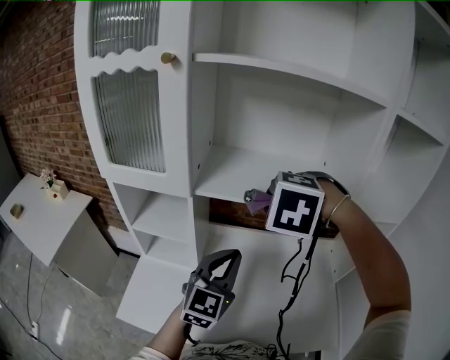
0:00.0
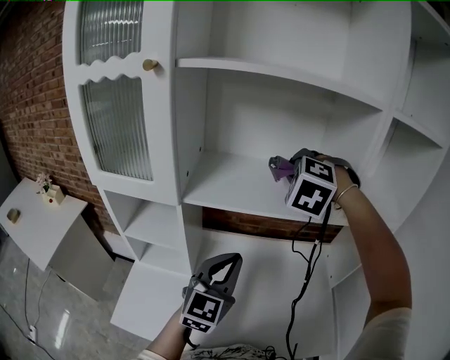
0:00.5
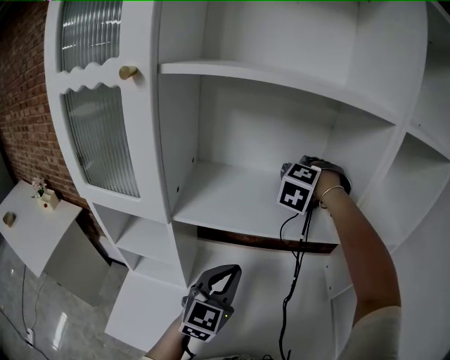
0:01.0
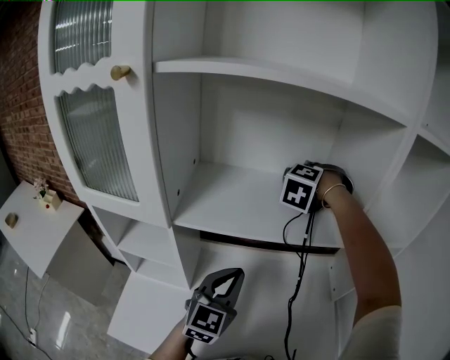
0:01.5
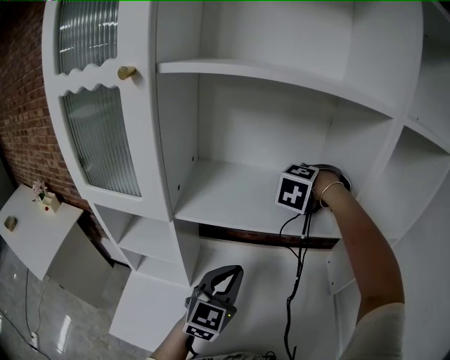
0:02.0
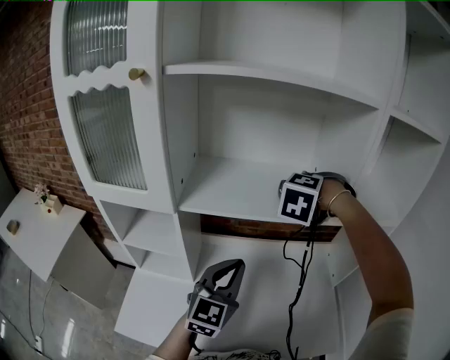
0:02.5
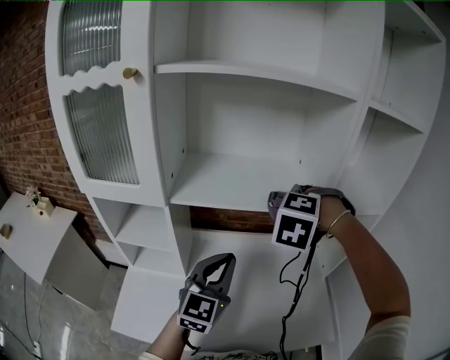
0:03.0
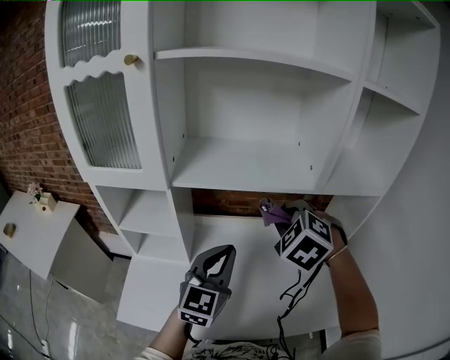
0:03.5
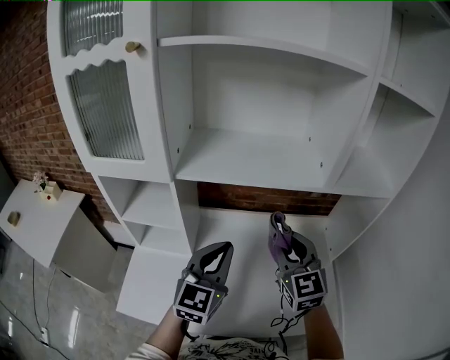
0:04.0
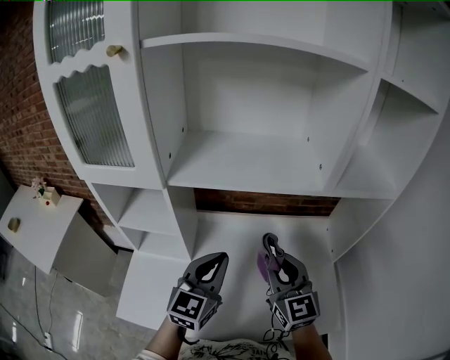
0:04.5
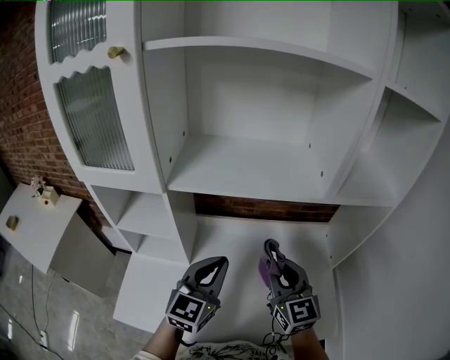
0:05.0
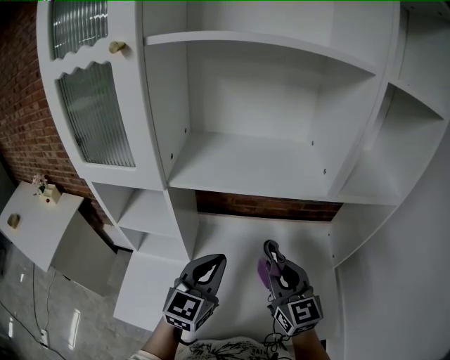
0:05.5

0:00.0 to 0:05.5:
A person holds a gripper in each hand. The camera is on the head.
0:00.0 to 0:02.0: The left gripper heads forward, covering approximately 5 cm. Meanwhile the right gripper heads forward, covering roughly 20 cm, and swivels some 30 degrees.
0:02.0 to 0:03.5: The right gripper travels backward by some 20 cm, and swivels approximately 30 degrees. The left gripper shifts about 10 cm backward.
0:03.5 to 0:05.5: The left gripper ends up about 5 cm from where it was. The right gripper moves downward, about 10 cm, and points its fingers about 40 degrees further upward.

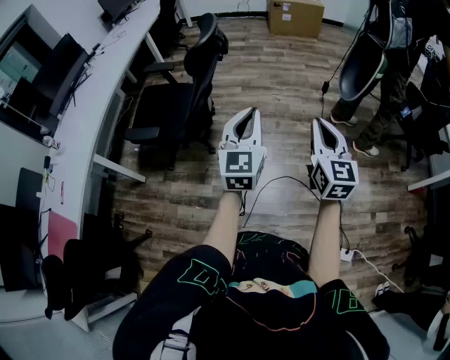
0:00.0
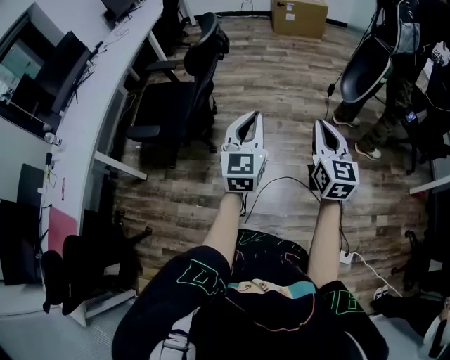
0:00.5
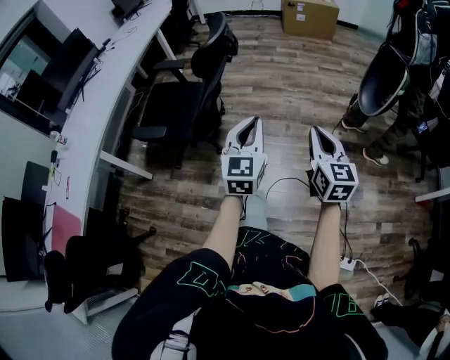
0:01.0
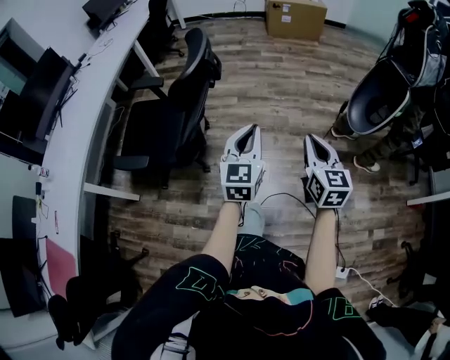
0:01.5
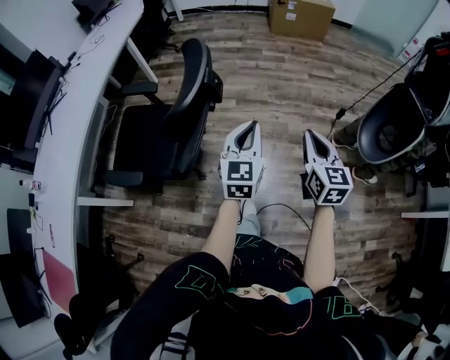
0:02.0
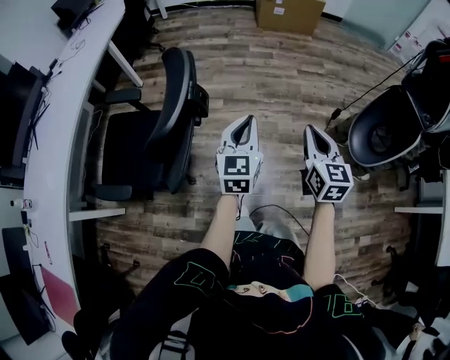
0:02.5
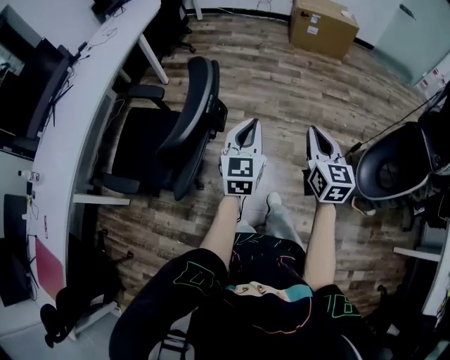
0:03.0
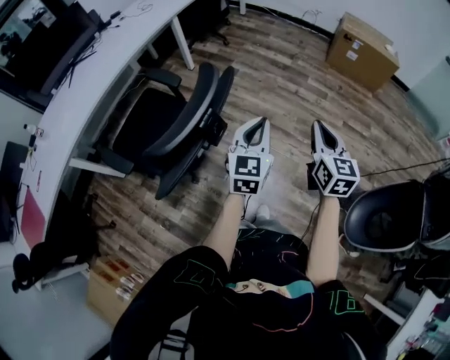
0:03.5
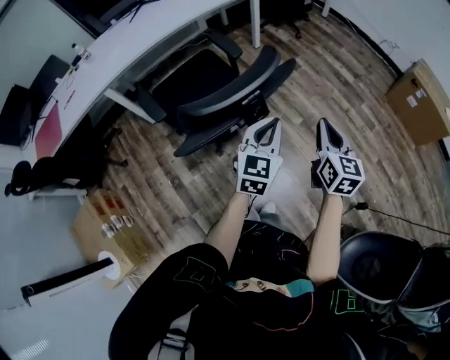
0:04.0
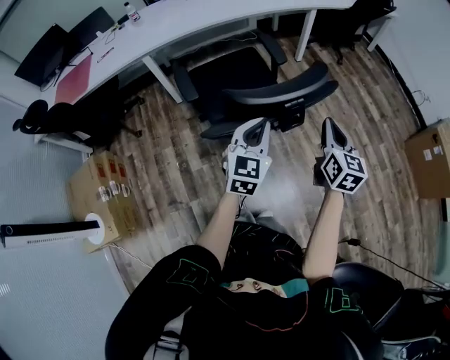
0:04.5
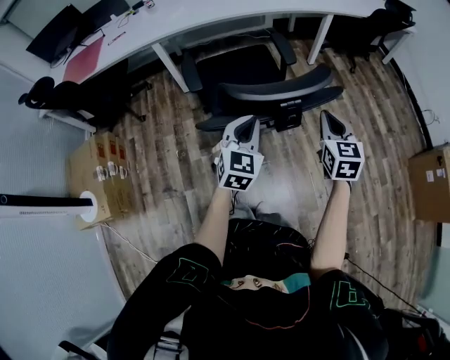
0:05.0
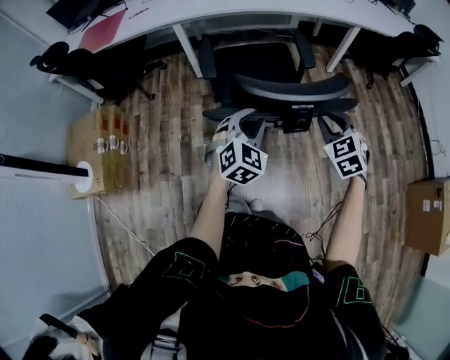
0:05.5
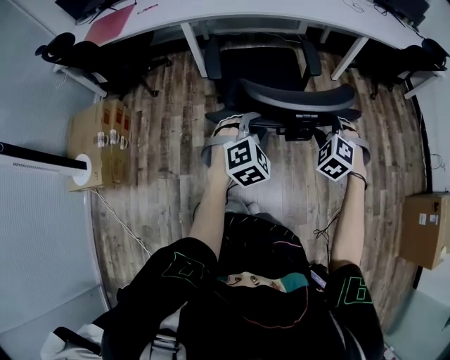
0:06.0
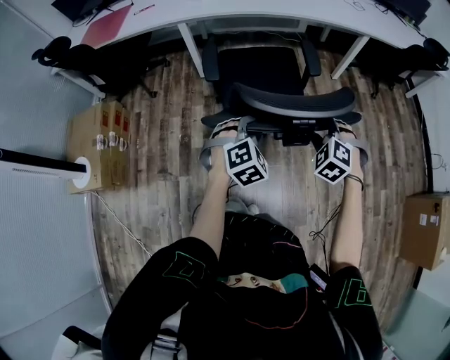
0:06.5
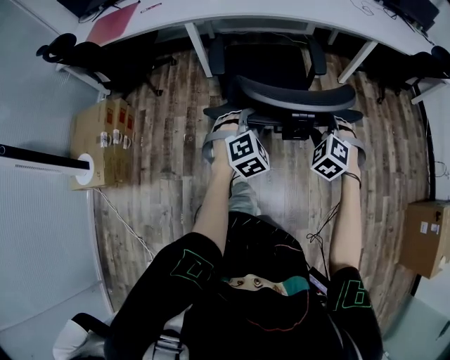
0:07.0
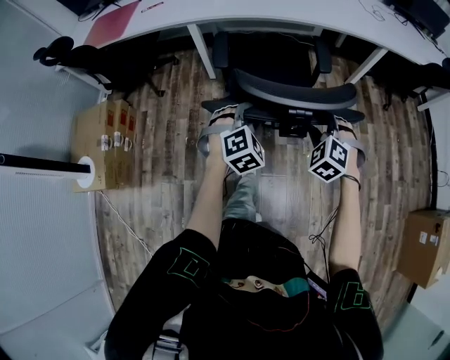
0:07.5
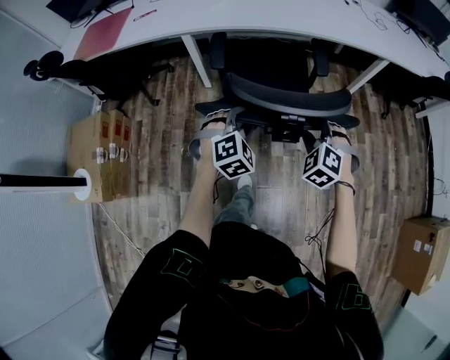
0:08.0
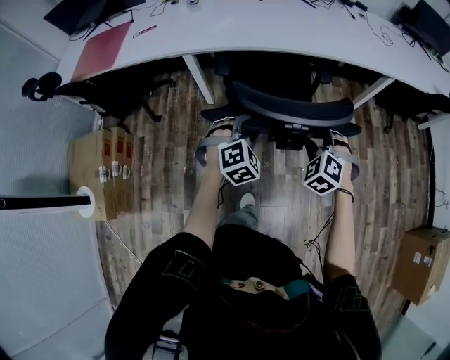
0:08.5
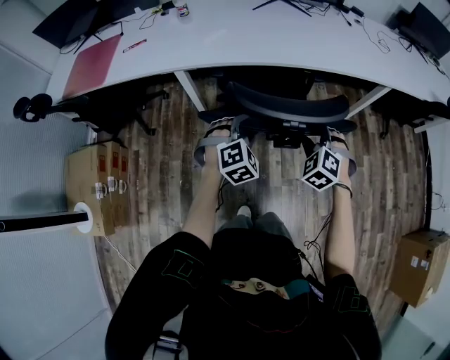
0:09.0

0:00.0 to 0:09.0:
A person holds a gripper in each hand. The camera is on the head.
0:00.0 to 0:02.0: The grippers both shift forward by about 30 cm.
0:02.0 to 0:04.5: The left gripper moves approximately 15 cm, and rotates about 60 degrees. Meanwhile the right gripper ends up approximately 35 cm from where it was, and rotates about 50 degrees.
0:04.5 to 0:07.0: The right gripper is displaced forward, downward and to the left by approximately 20 cm, rolls counterclockwise, seen from behind, by roughly 80 degrees, and opens up. Meanwhile the left gripper heads downward and forward, covering roughly 15 cm, angles its fingers downward, by approximately 30 degrees, and opens.
0:07.0 to 0:09.0: Both grippers travel together forward, roughly 35 cm.

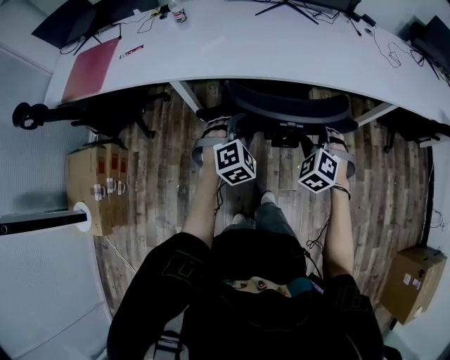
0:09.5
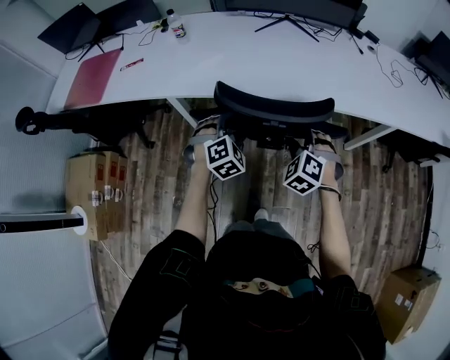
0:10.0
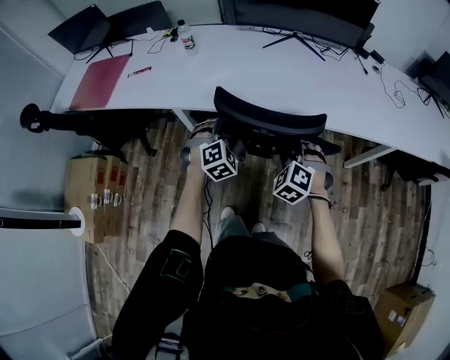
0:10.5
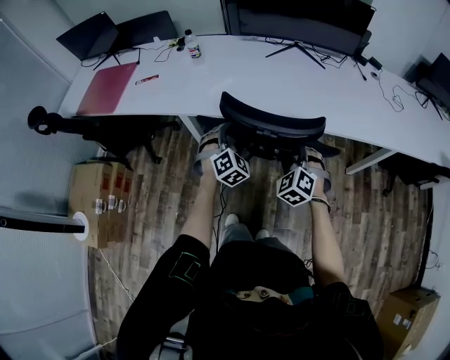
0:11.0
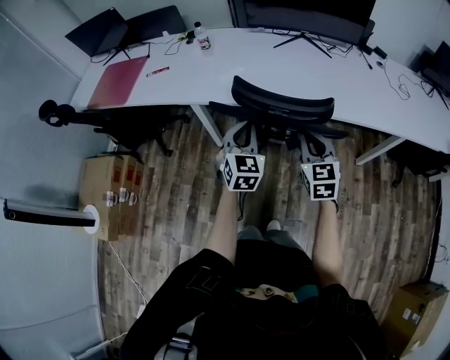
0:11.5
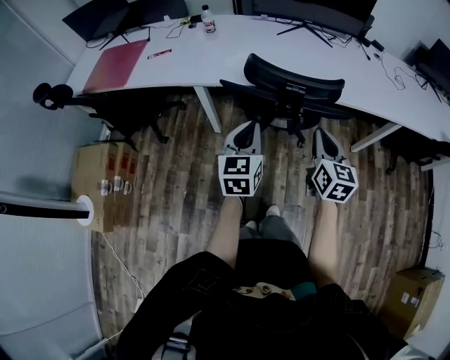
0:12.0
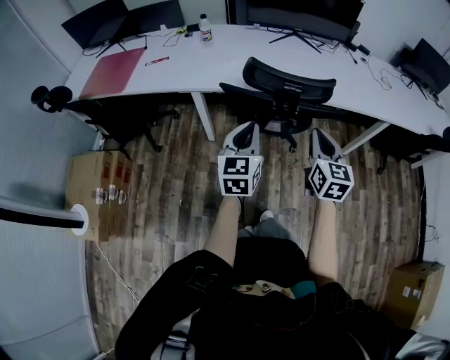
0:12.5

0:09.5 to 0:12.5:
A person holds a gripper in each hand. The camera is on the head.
0:09.5 to 0:11.0: Both grippers move forward, about 10 cm.
0:11.0 to 0:12.5: Both grippers move backward and upward, some 20 cm. The left gripper rolls counterclockwise, seen from behind, by roughly 50 degrees, and closes its fingers. The right gripper twists some 60 degrees clockwise, seen from behind, and closes up.

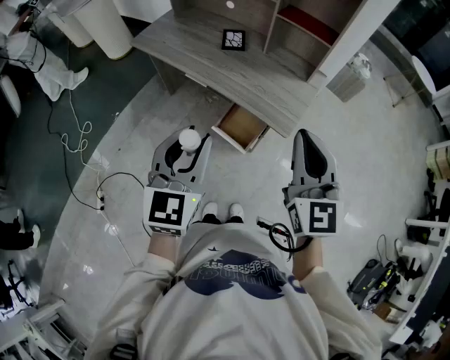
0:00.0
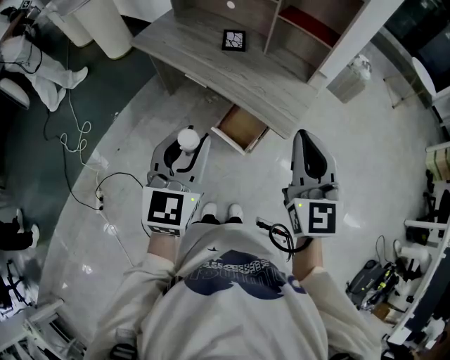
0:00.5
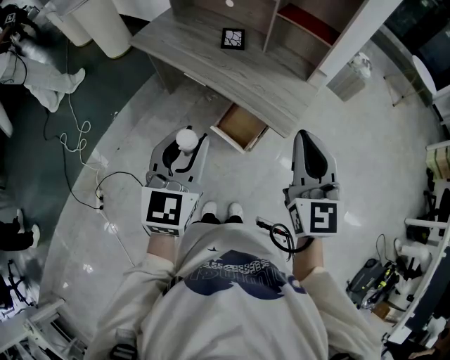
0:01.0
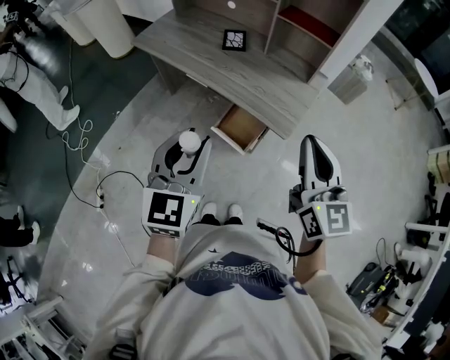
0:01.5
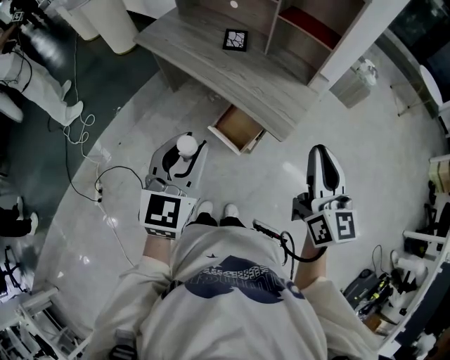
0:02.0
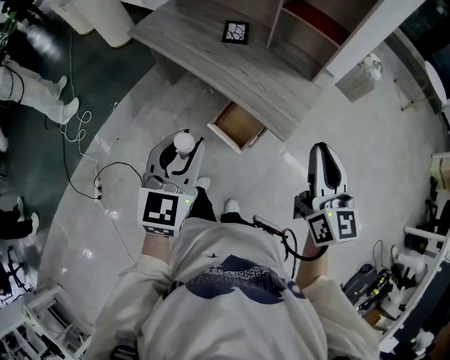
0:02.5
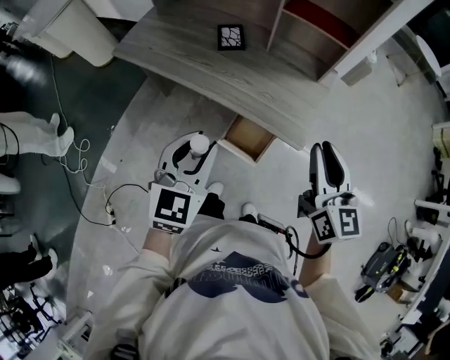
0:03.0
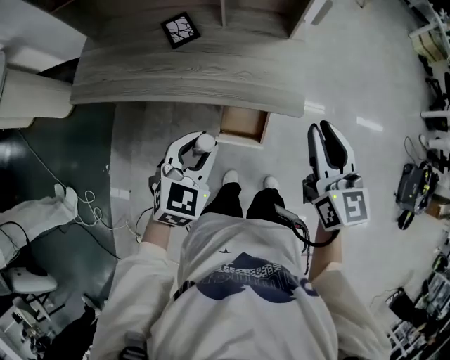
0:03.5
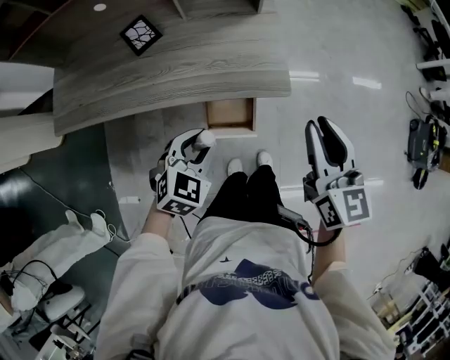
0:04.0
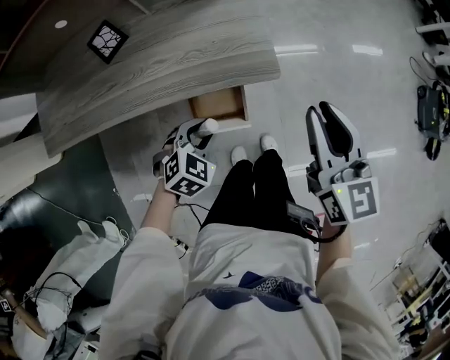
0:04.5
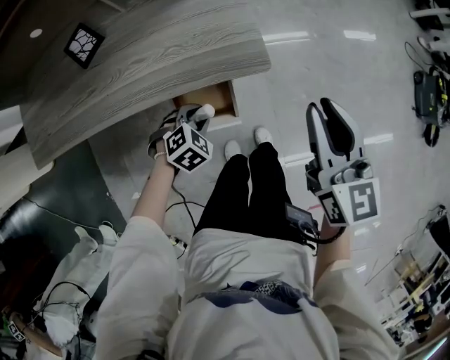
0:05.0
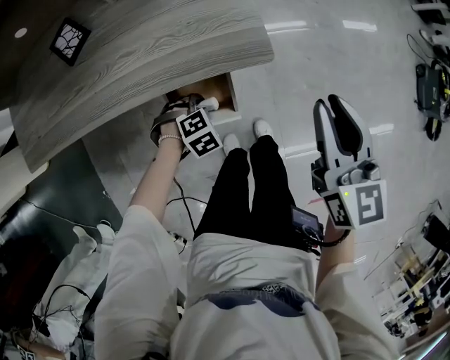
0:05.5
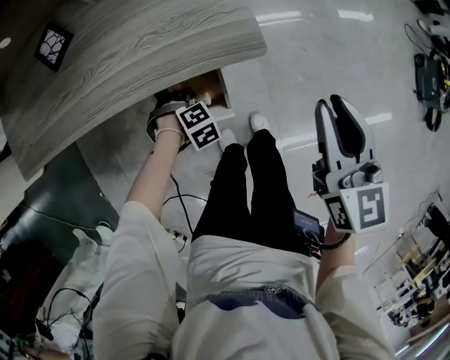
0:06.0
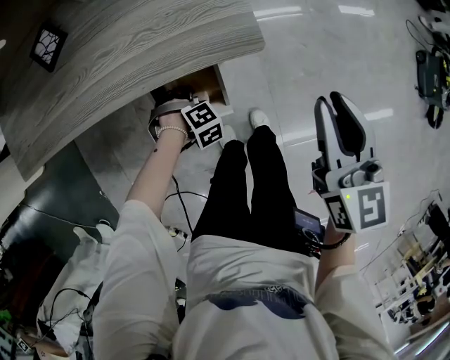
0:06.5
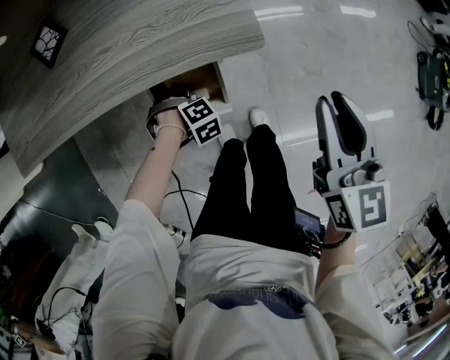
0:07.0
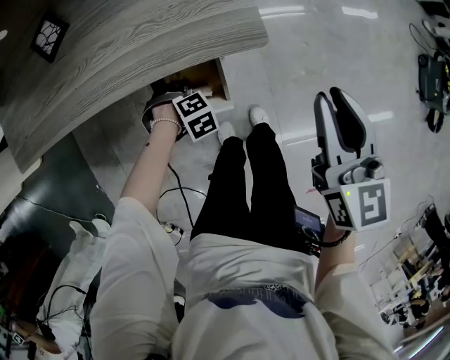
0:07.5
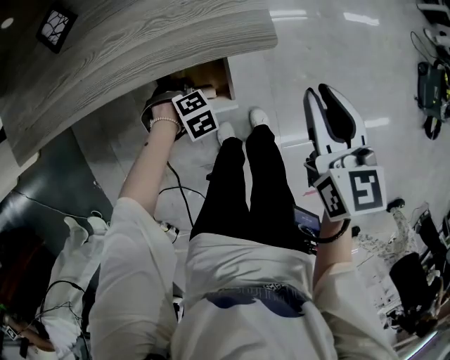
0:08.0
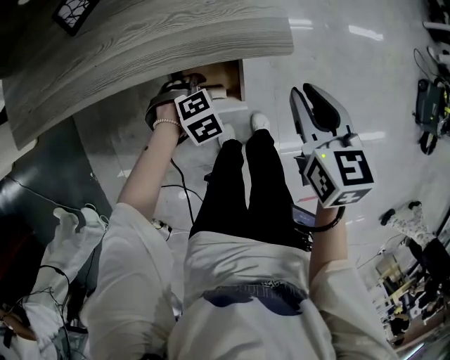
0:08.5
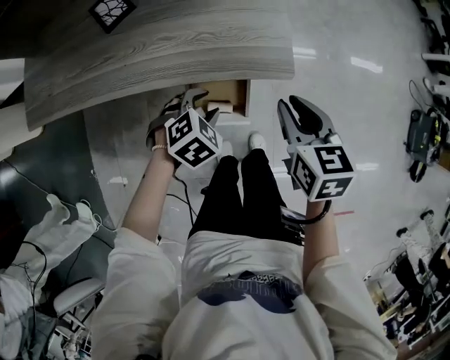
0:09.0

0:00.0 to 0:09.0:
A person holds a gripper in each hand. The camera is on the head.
0:00.0 to 0:02.0: The right gripper goes some 10 cm to the right, and changes its angle by roughly 20 degrees.
0:02.0 to 0:04.5: The left gripper moves downward, about 35 cm, and tilts its fingers roughly 40 degrees downward. Meanwhile the right gripper moves downward, approximately 20 cm, and rotates roughly 40 degrees.
0:04.5 to 0:07.0: The right gripper shifts roughly 10 cm downward, while the left gripper travels downward by some 25 cm, and turns by roughly 40 degrees.
0:07.0 to 0:09.0: The right gripper ends up approximately 10 cm from where it was, and changes its angle by some 20 degrees. The left gripper shifts about 20 cm upward, and swivels approximately 40 degrees.
